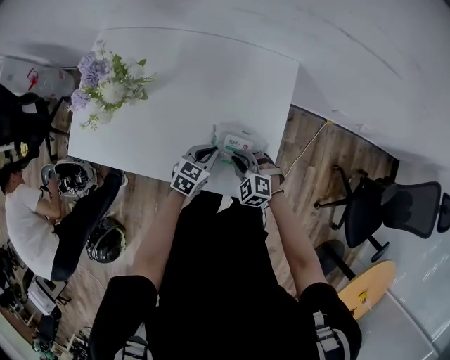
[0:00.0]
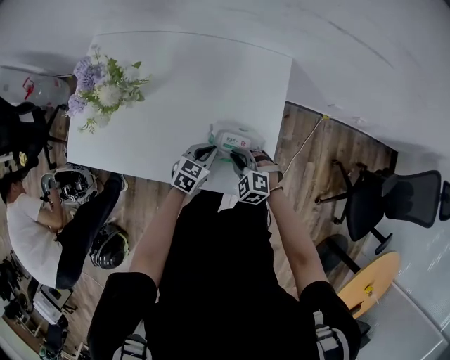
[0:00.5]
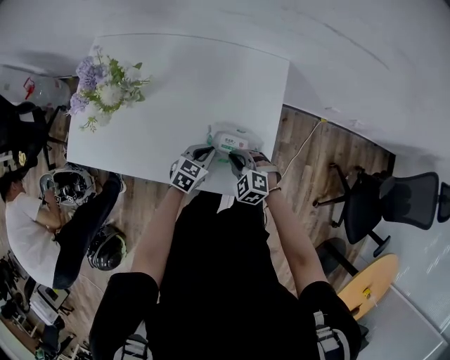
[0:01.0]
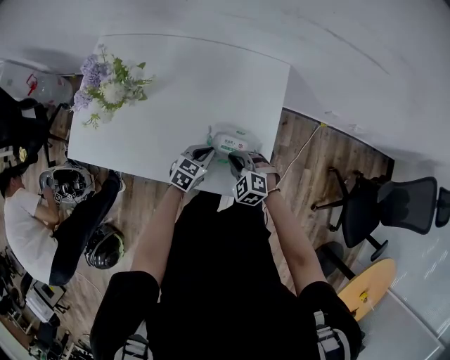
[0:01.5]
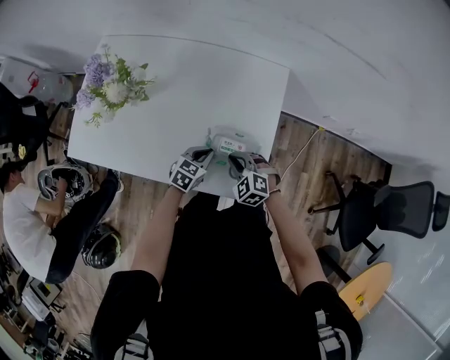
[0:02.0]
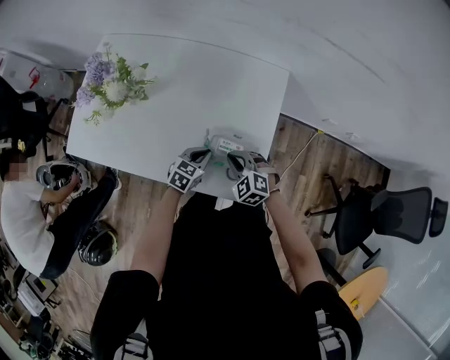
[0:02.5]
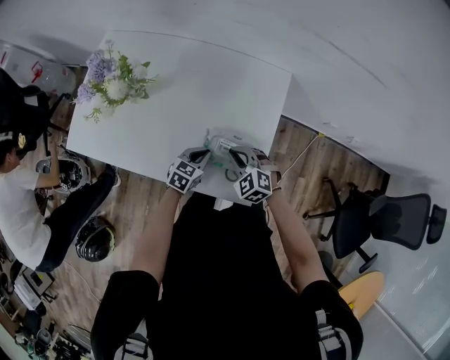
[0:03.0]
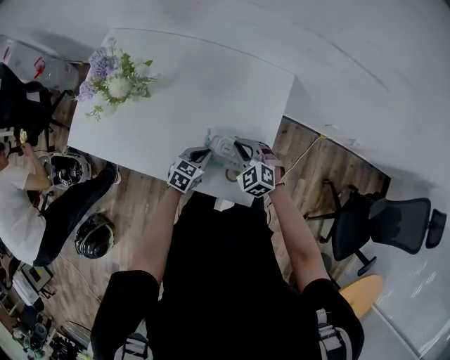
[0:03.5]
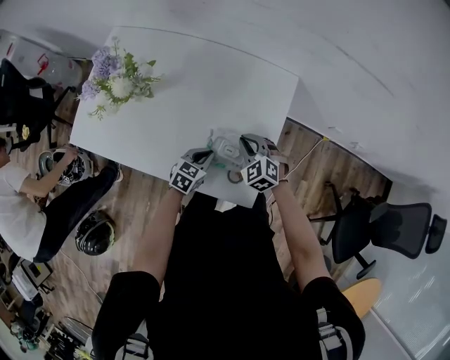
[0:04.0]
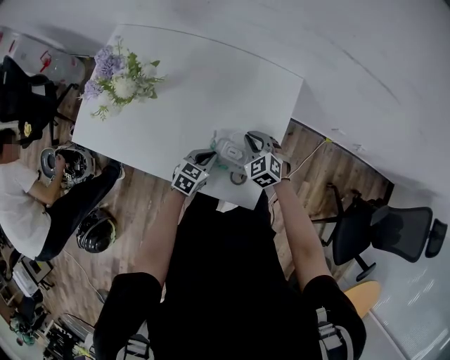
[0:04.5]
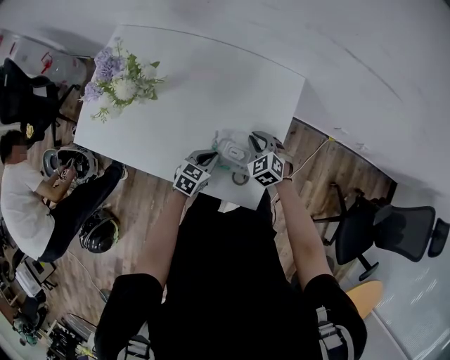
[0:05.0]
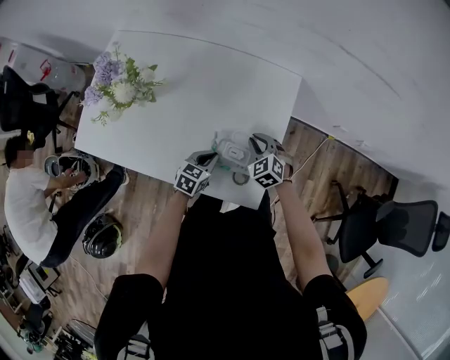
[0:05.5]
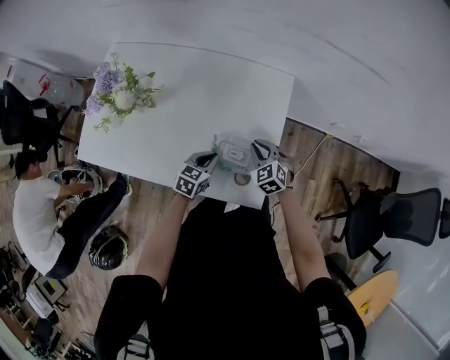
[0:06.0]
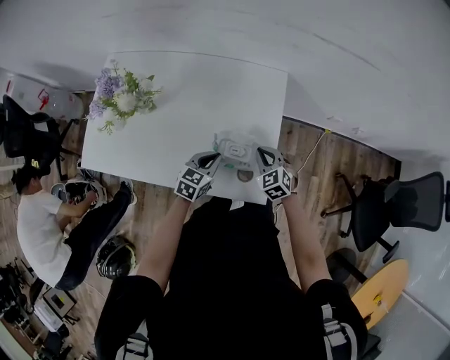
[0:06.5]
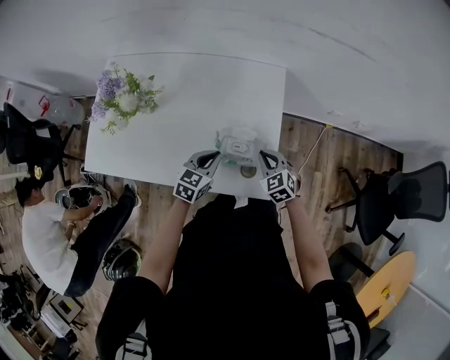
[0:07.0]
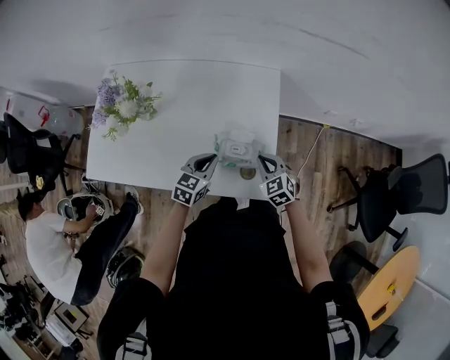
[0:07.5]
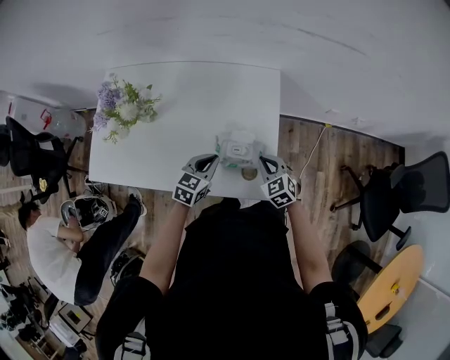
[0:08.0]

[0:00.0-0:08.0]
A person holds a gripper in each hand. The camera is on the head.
0.0 to 2.0 s: There are only small adjustments of the grippers.
2.0 to 4.0 s: The right gripper shifts roughly 10 cm forward.
4.0 to 6.0 s: There are only small adjustments of the grippers.
6.0 to 8.0 s: The left gripper heads upward, covering about 10 cm, while the right gripper moves backward, roughly 10 cm.

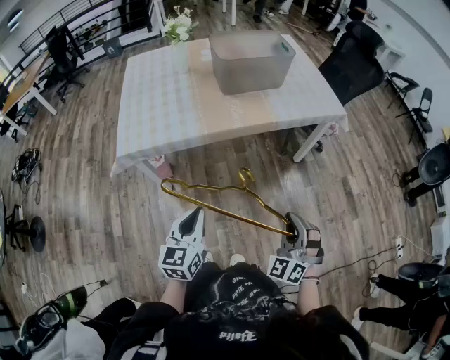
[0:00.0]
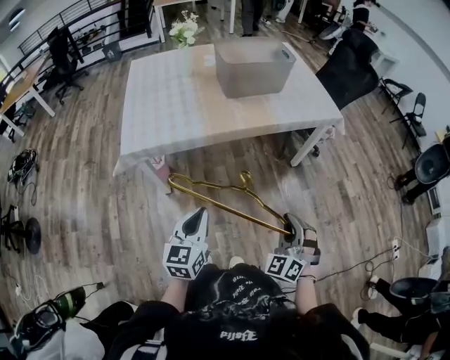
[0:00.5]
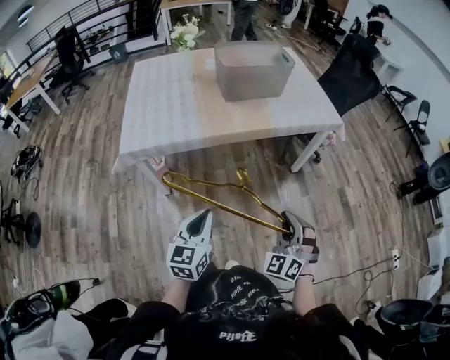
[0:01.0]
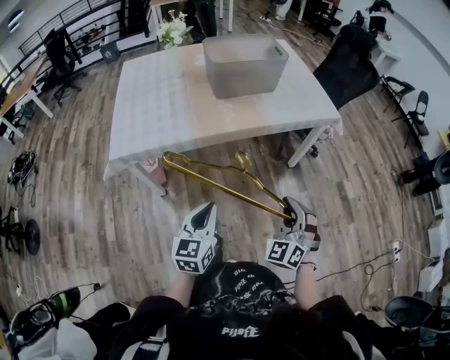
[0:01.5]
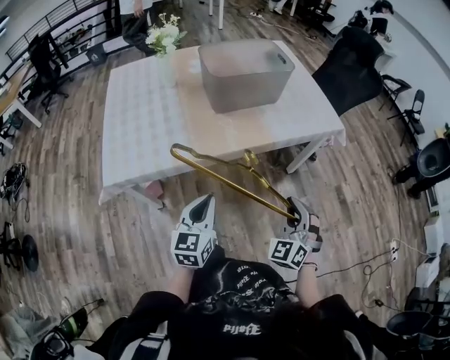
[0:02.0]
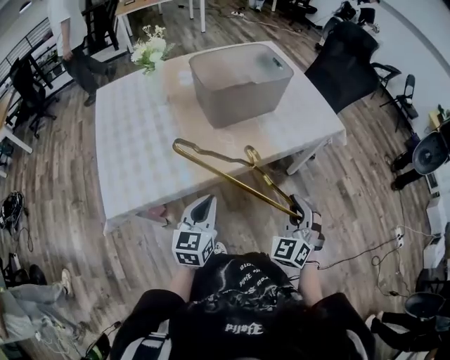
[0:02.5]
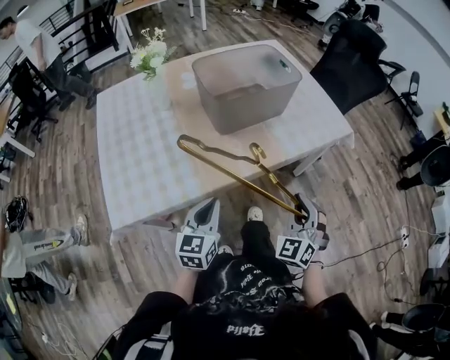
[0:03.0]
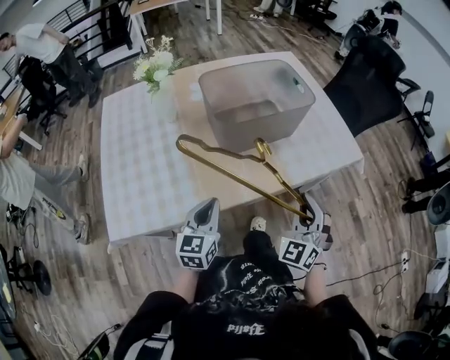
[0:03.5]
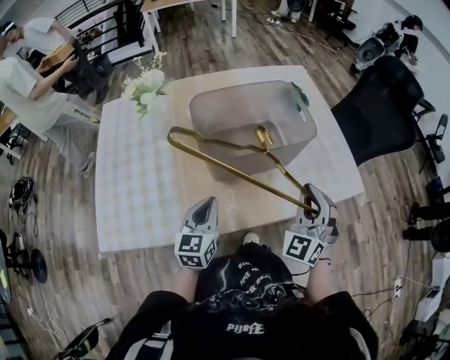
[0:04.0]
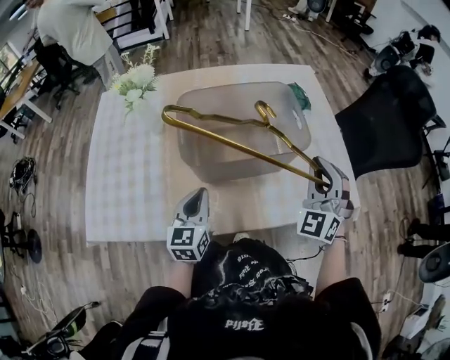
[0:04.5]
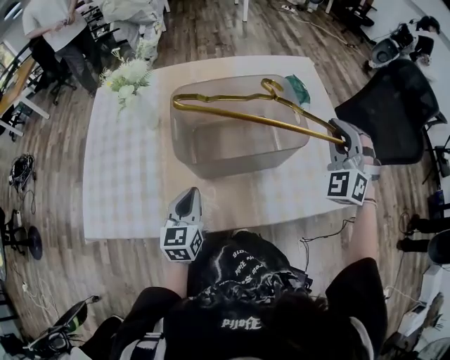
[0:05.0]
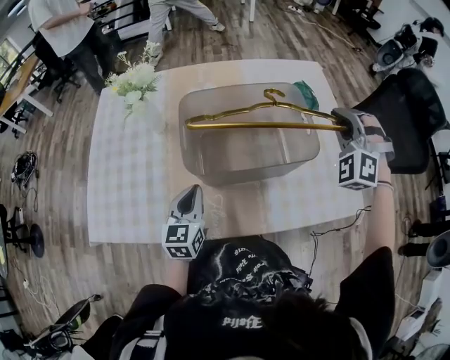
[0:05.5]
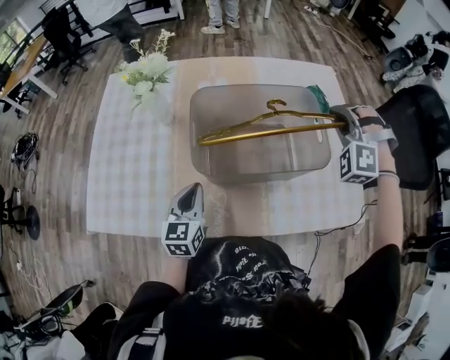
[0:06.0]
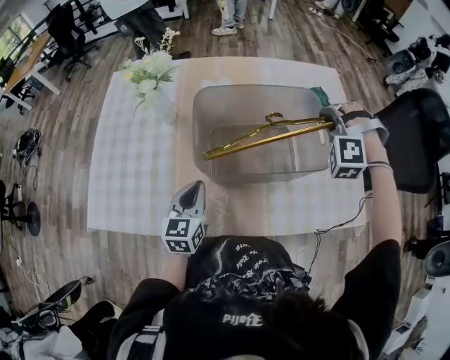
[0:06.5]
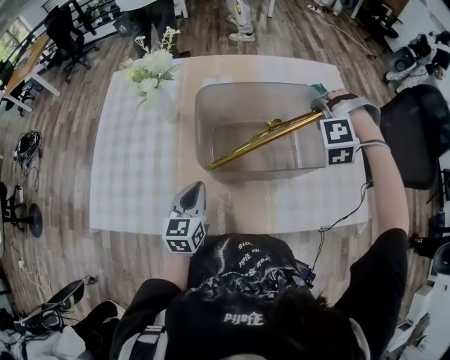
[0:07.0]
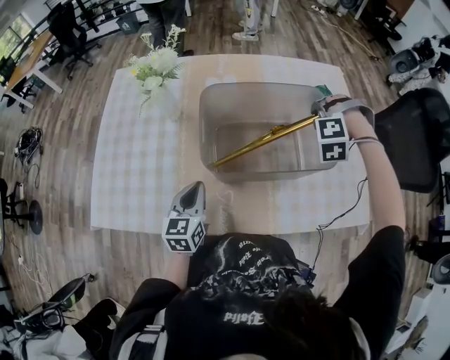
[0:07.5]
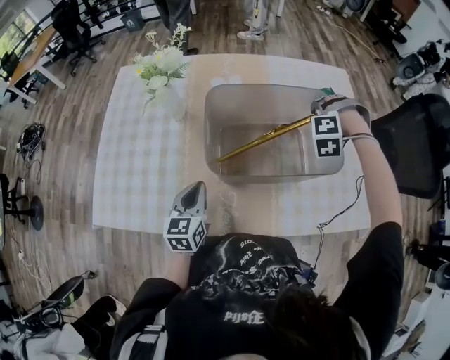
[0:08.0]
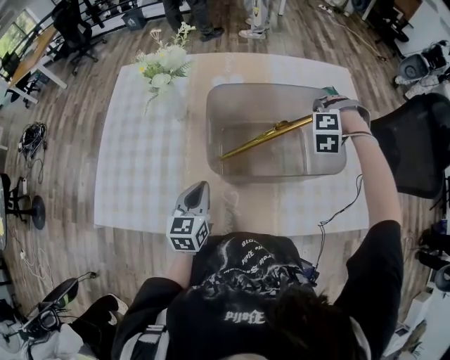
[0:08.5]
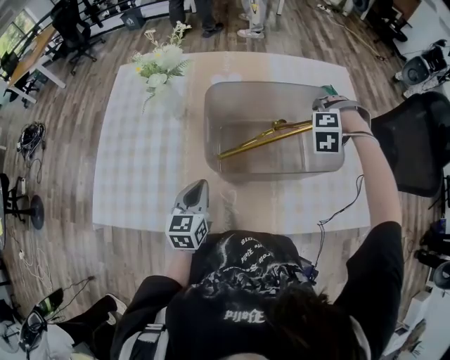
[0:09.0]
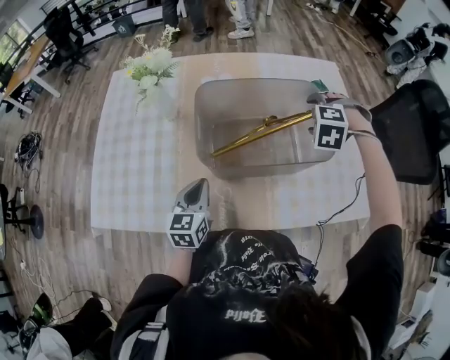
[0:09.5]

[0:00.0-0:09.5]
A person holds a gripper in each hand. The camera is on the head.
0.0 to 2.0 s: Both grippers move forward, some 15 cm.
2.0 to 4.0 s: Both grippers move forward, about 40 cm.
4.0 to 5.5 s: The right gripper shifts approximately 25 cm forward, and changes its angle by some 40 degrees, while the left gripper shifts roughly 10 cm forward.
5.5 to 7.5 s: The right gripper heads downward and to the left, covering approximately 15 cm, and angles its fingers downward, by some 30 degrees.
7.5 to 9.5 s: The right gripper swivels some 20 degrees, and opens.

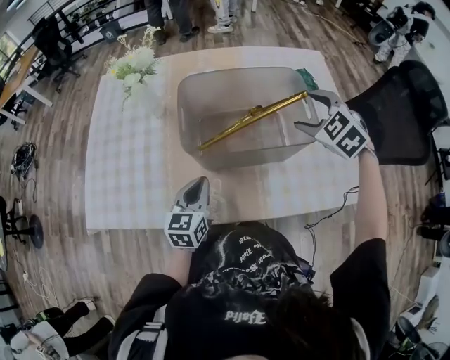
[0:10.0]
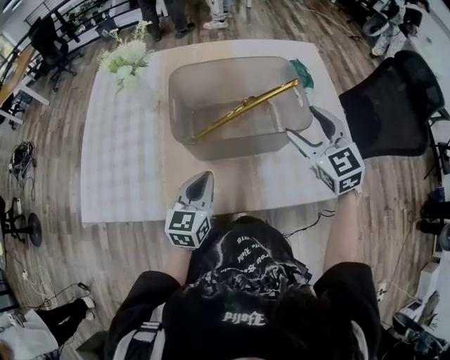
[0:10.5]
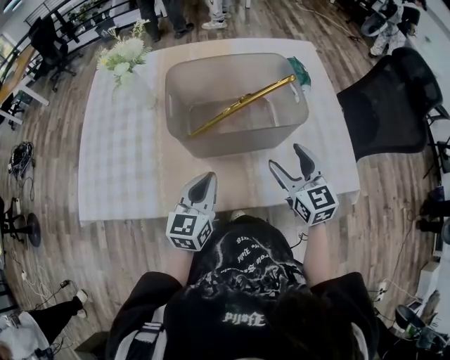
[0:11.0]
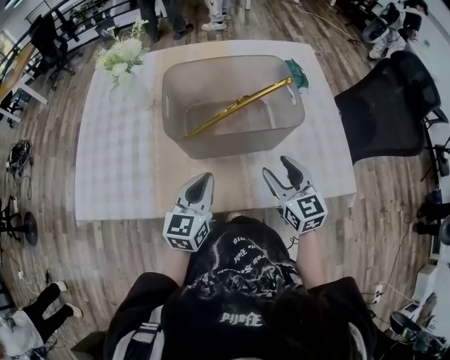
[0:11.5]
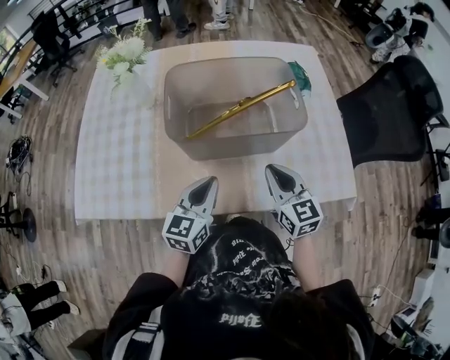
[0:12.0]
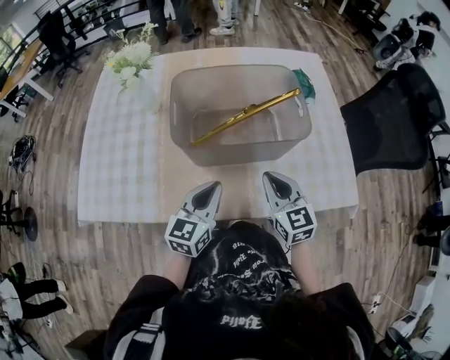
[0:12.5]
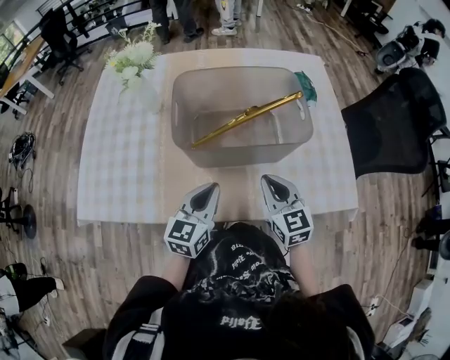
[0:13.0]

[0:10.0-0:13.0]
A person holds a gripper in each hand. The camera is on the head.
10.0 to 11.5 s: The right gripper travels backward and downward by some 20 cm, and rolls clockwise, seen from behind, by about 40 degrees. The left gripper shifts roughly 5 cm to the right.
11.5 to 13.0 s: The right gripper closes up.

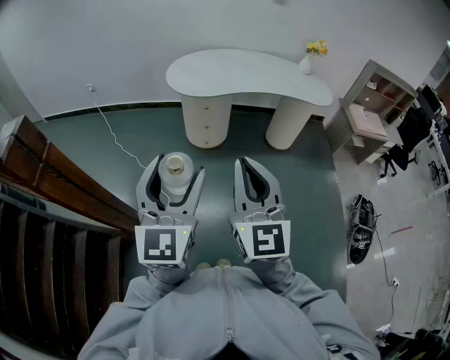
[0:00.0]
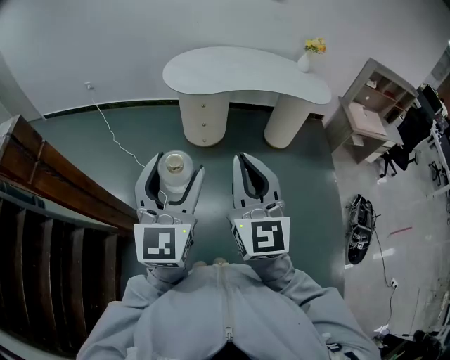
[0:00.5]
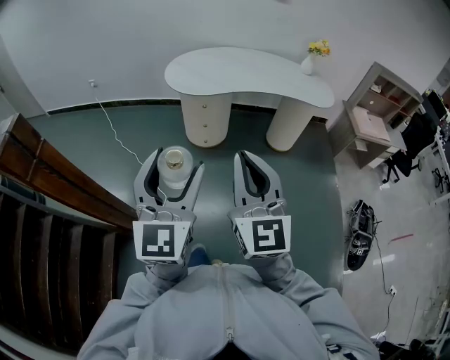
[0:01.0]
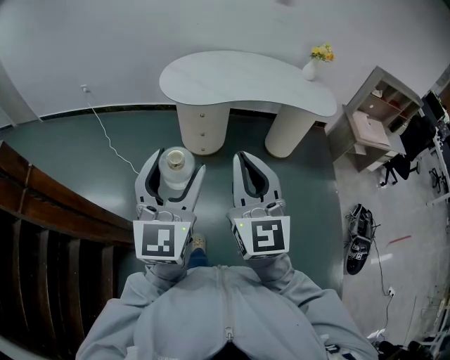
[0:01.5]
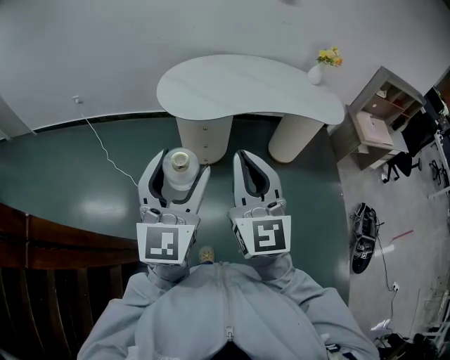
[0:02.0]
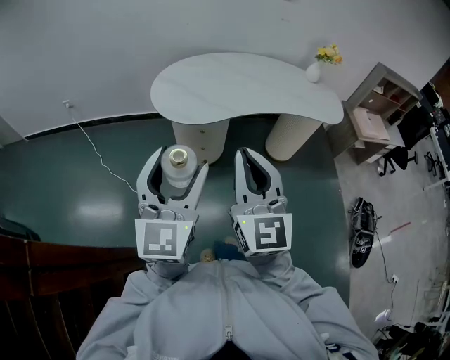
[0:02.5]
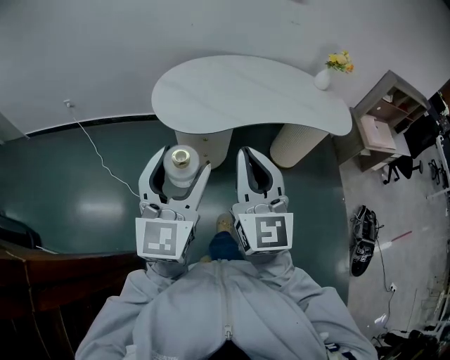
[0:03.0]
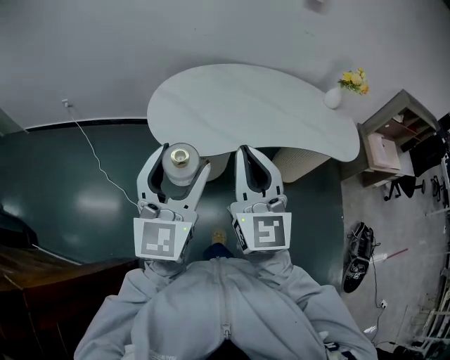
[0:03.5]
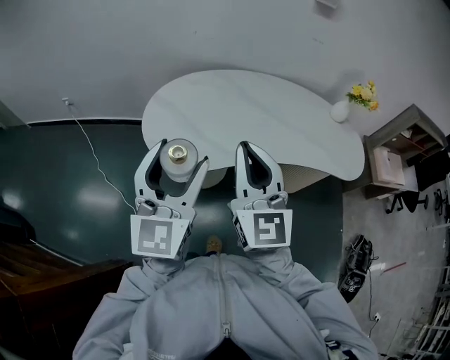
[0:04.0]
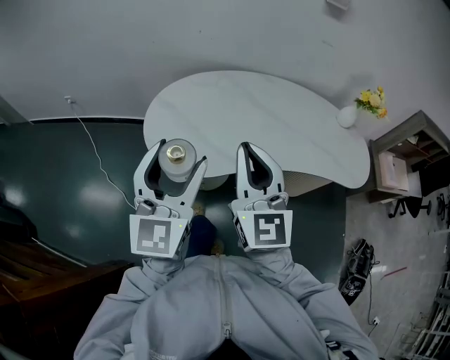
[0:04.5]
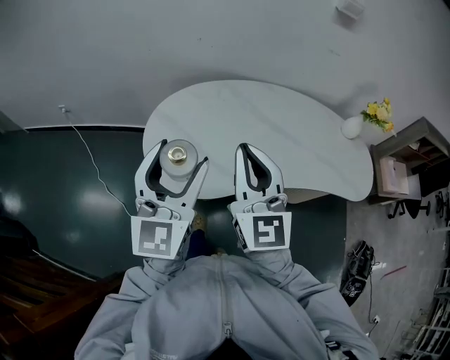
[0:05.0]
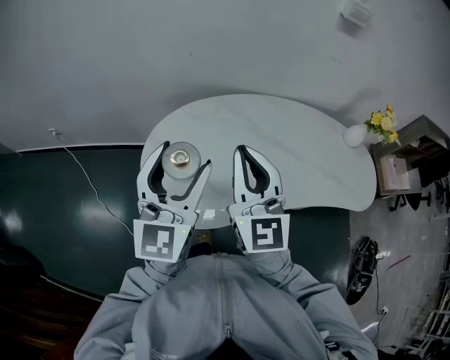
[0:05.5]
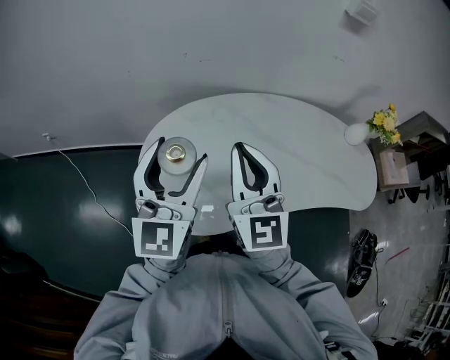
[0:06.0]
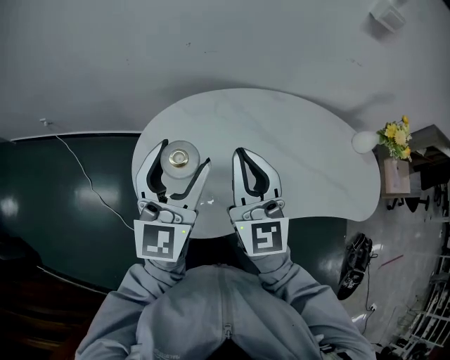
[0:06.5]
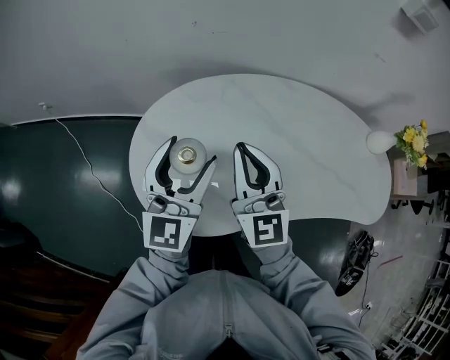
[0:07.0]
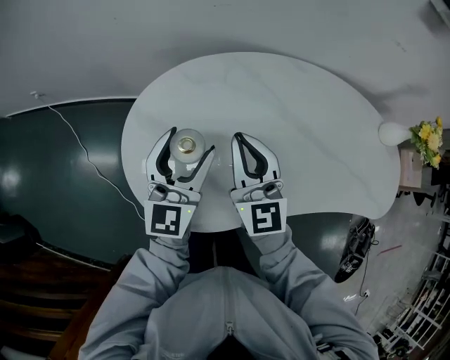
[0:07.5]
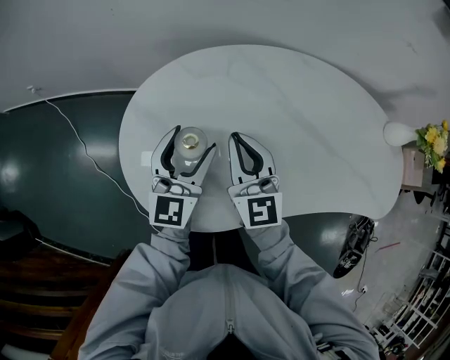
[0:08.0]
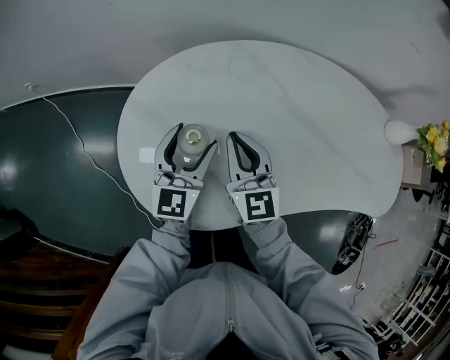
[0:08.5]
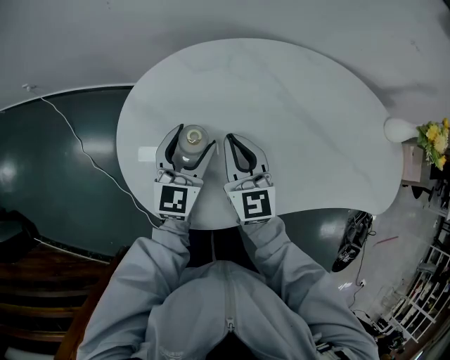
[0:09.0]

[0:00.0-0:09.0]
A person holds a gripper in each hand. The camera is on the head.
0.0 to 2.0 s: Both grippers move forward, approximately 25 cm.
2.0 to 4.5 s: Both grippers travel together forward, approximately 35 cm.
4.5 to 7.0 s: Both grippers move forward and downward, approximately 30 cm.
7.0 to 9.0 s: The two grippers go roughly 20 cm downward.
